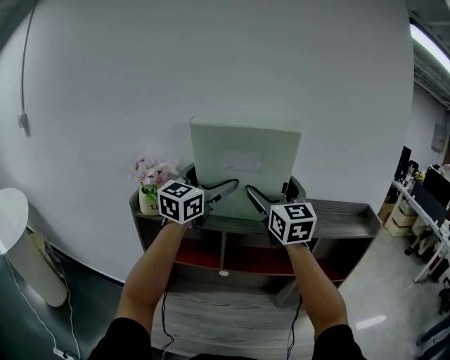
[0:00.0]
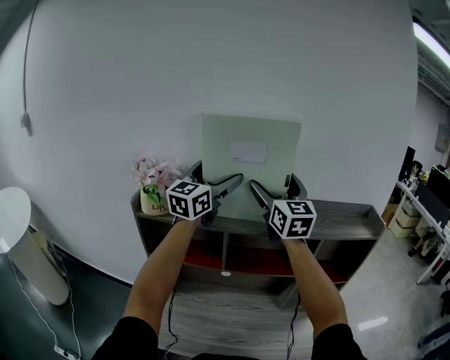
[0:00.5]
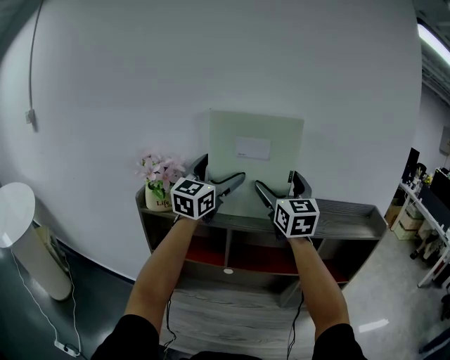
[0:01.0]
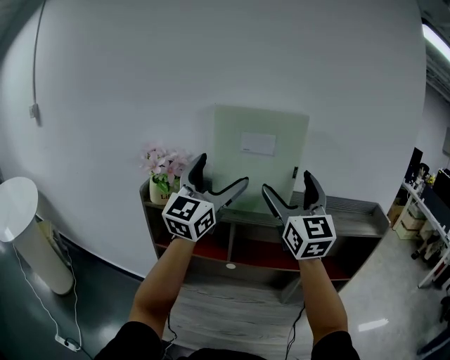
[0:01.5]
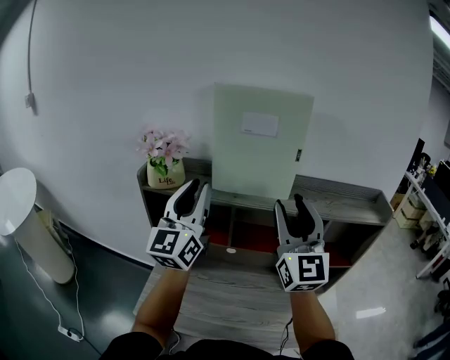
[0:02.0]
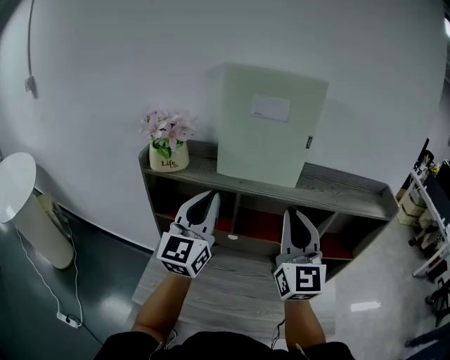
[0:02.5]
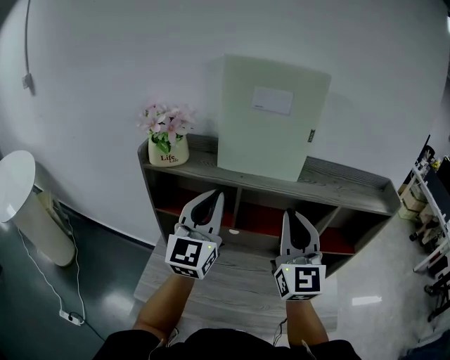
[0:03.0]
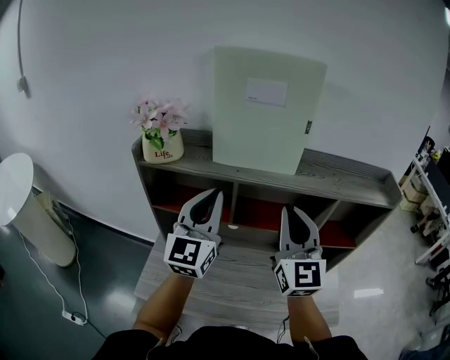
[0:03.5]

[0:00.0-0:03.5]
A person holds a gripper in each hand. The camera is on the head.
0:00.0 to 0:02.0: The left gripper travels backward and to the left by about 15 cm, rotates about 30 degrees, and closes its fingers; the right gripper travels backward by some 15 cm, and closes.
0:02.0 to 0:03.5: Both grippers travel together downward, approximately 10 cm. The right gripper closes its fingers.

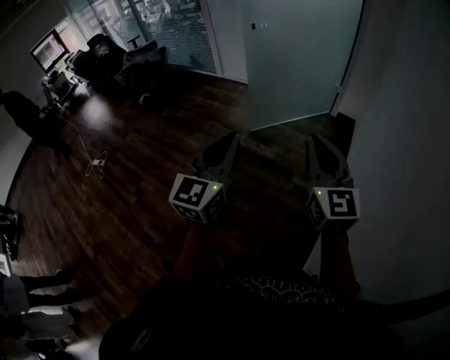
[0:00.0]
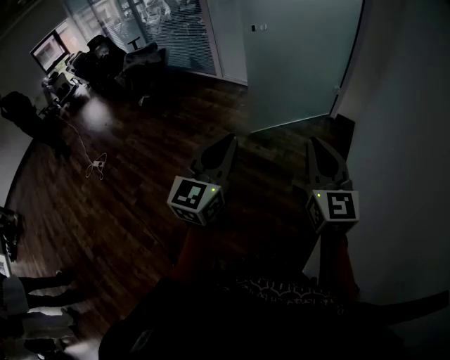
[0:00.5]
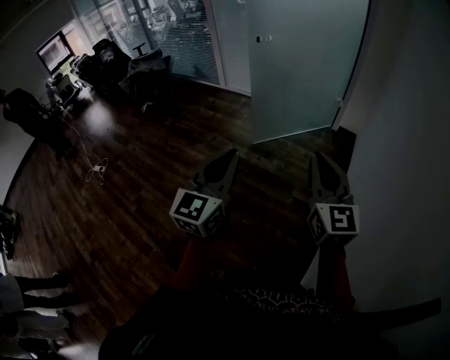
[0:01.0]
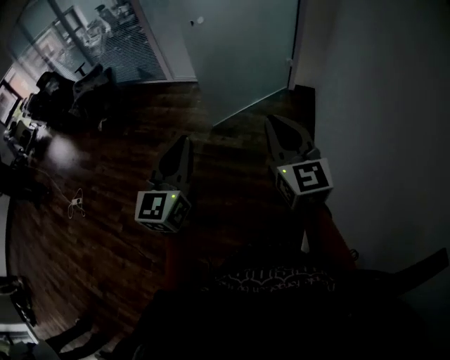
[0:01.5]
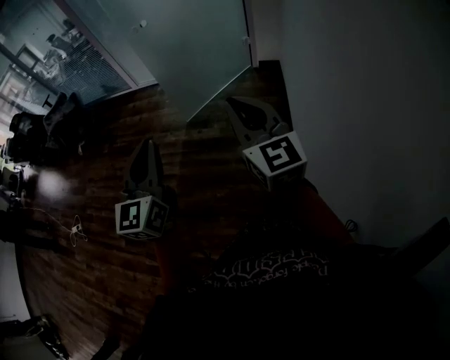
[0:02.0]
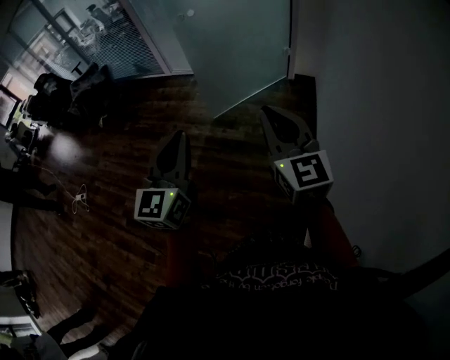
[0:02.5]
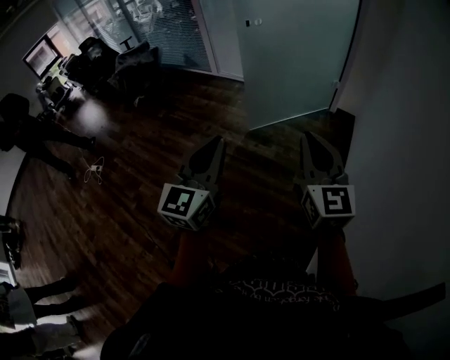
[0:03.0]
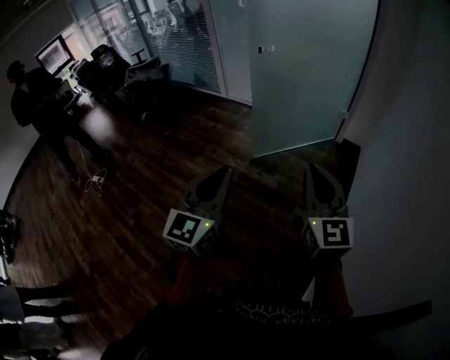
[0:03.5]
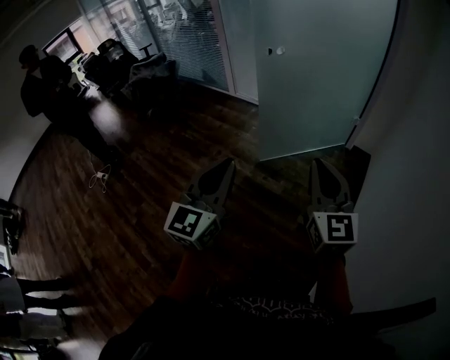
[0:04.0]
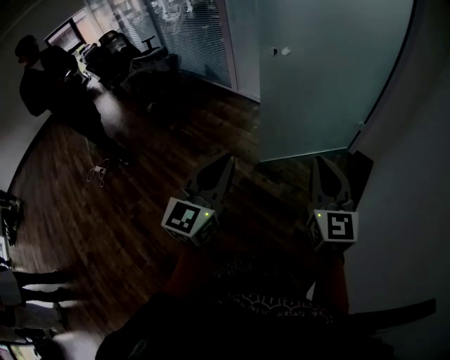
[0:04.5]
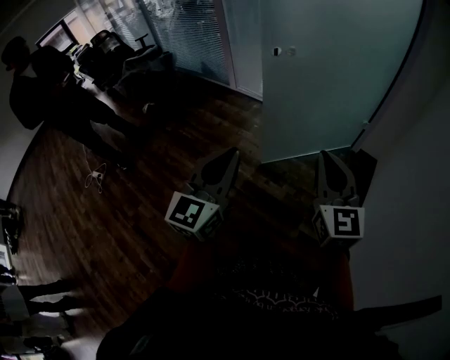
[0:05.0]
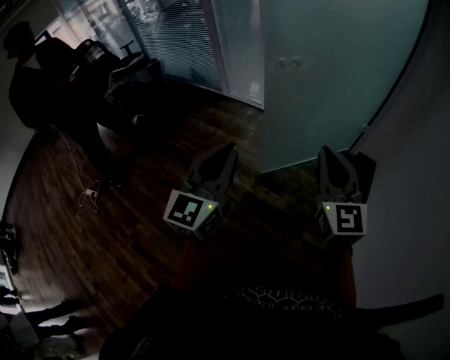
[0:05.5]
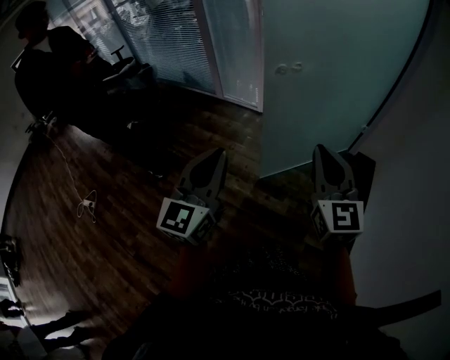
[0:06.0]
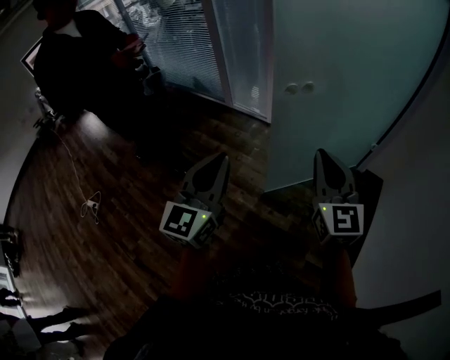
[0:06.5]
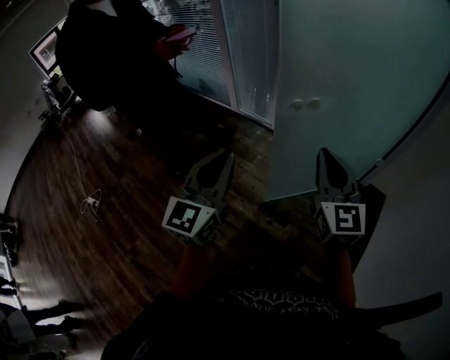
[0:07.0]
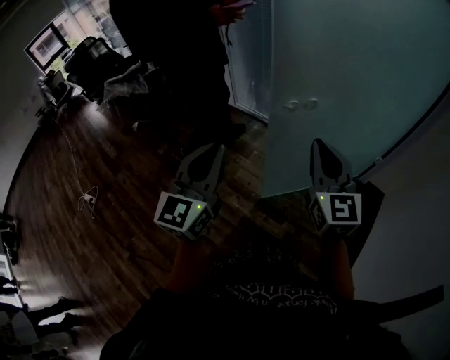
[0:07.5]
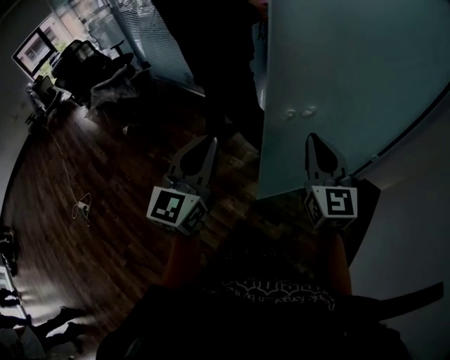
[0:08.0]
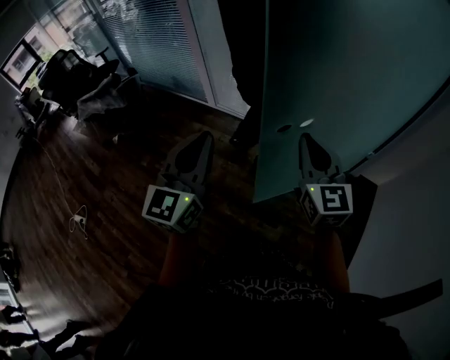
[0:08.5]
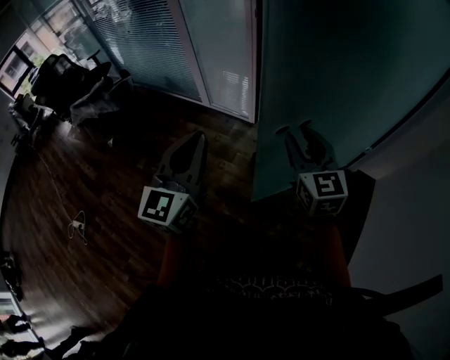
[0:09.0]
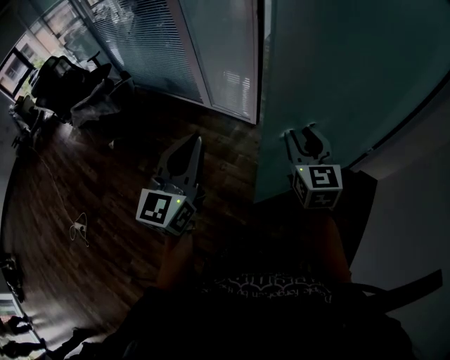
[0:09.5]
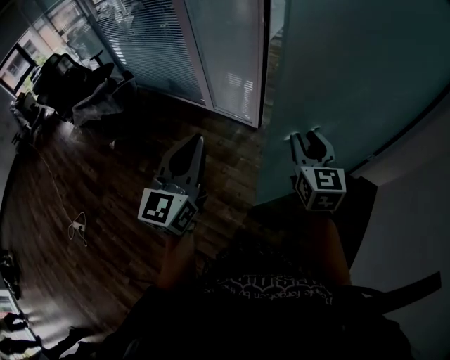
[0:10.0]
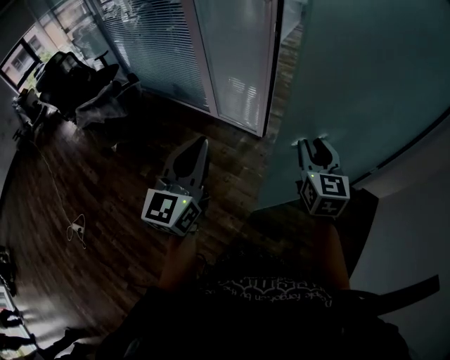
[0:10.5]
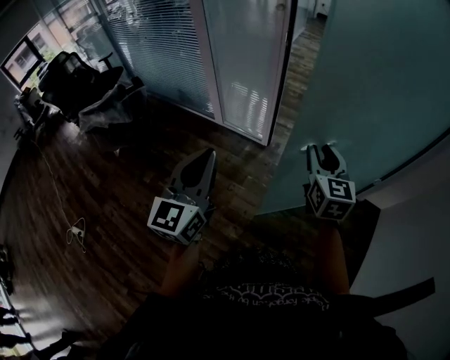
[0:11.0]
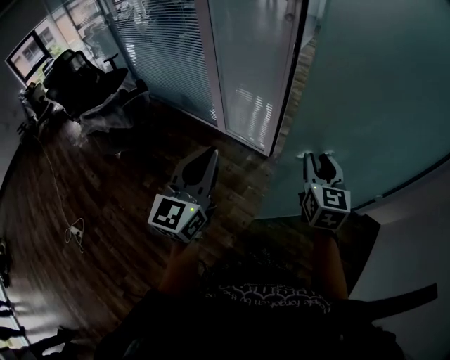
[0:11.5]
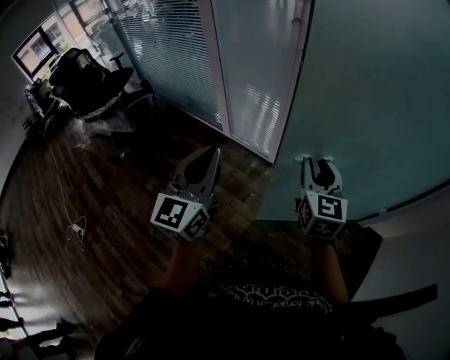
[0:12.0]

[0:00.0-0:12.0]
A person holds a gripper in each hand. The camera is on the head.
0:00.0 to 0:02.0: The grippers move only a little.
0:02.0 to 0:04.0: The grippers both shift forward by approximately 15 cm.
0:04.0 to 0:06.0: The left gripper moves forward and to the left, roughly 30 cm, while the right gripper goes approximately 30 cm forward.
0:06.0 to 0:08.0: Both grippers move forward, approximately 25 cm.
0:08.0 to 0:10.0: The two grippers go approximately 10 cm forward. The right gripper opens its fingers.
0:10.0 to 0:12.0: Both grippers move forward, approximately 15 cm.

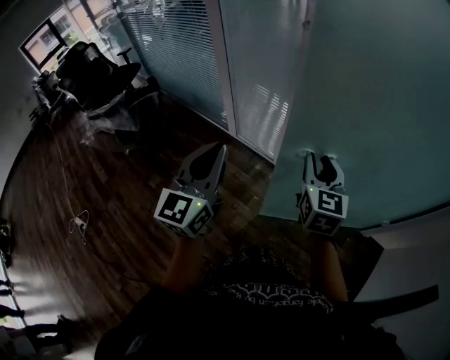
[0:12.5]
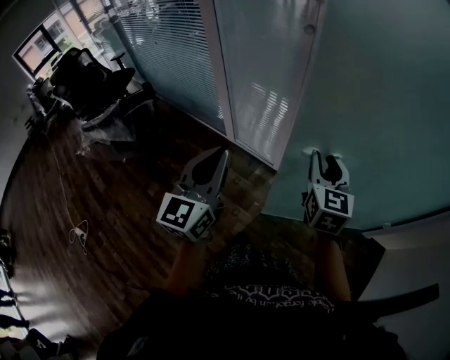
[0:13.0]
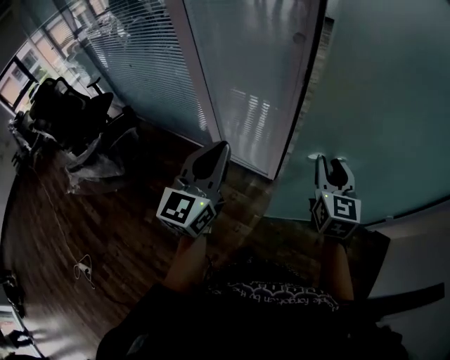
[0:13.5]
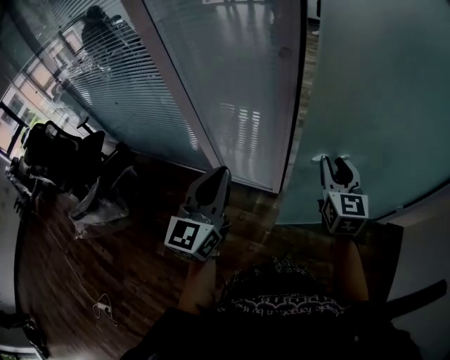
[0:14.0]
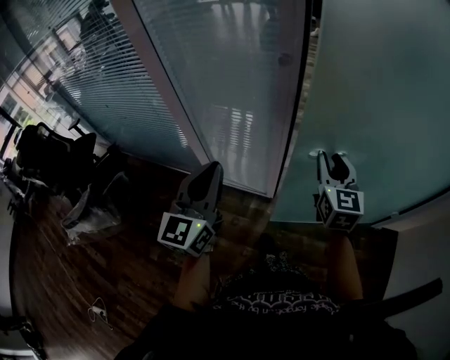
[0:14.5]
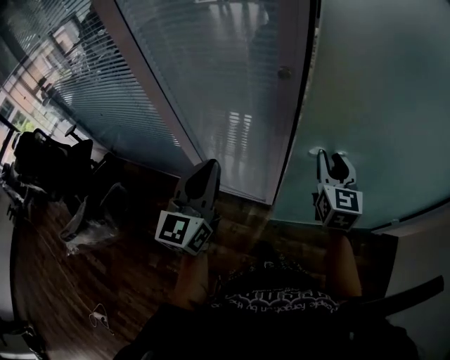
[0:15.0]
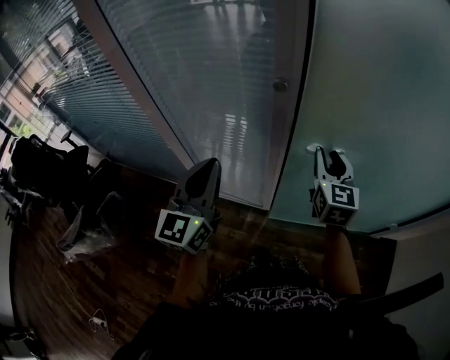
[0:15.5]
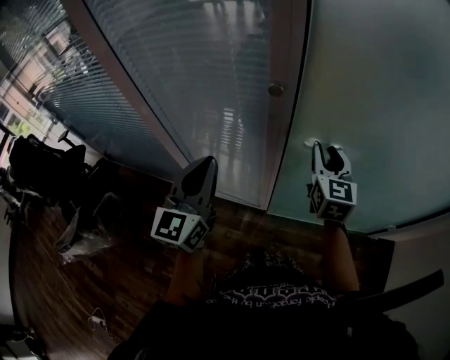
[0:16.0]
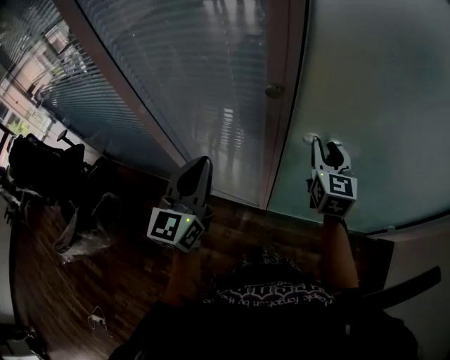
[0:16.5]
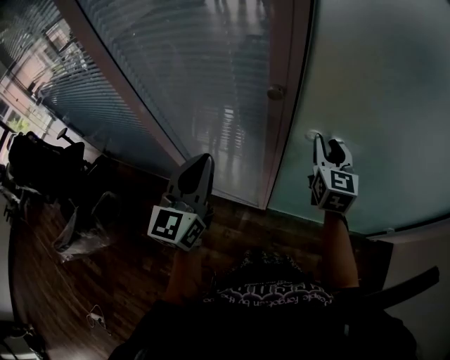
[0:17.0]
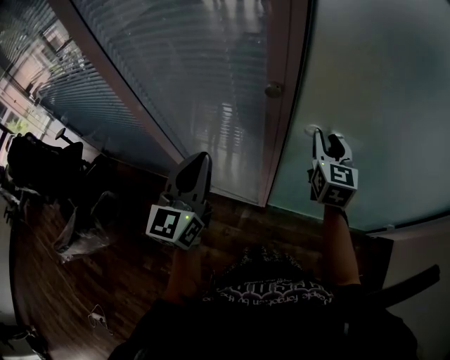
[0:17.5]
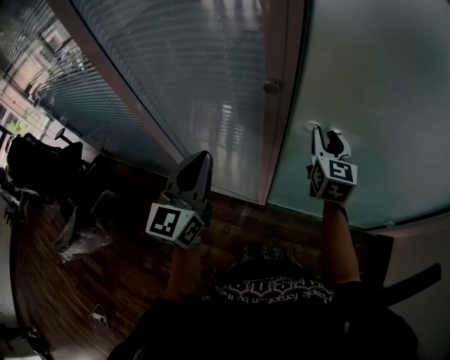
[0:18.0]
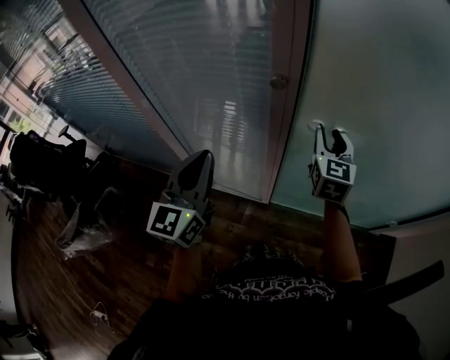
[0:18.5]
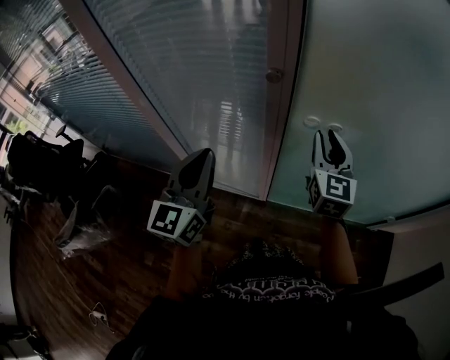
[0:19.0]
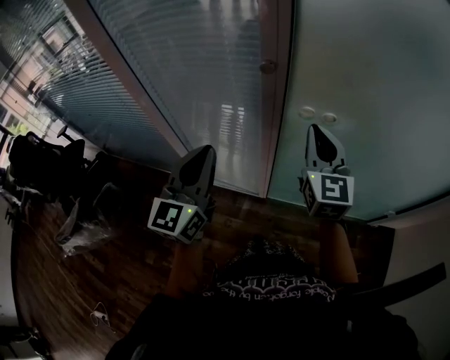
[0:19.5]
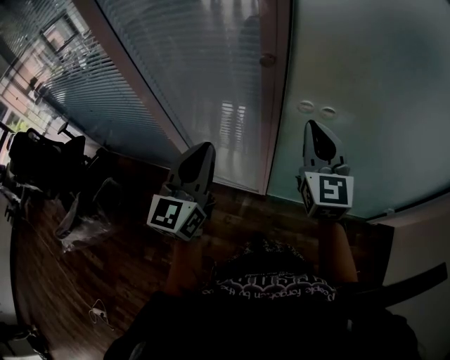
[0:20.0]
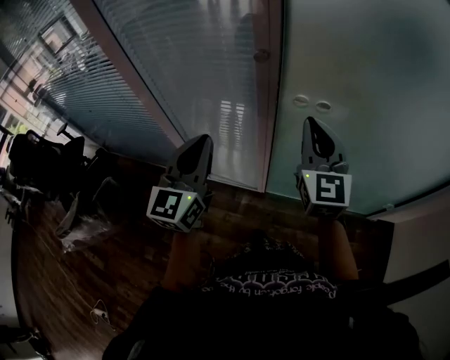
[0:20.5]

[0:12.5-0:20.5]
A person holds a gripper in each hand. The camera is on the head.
0:12.5 to 0:14.5: Both grippers move forward, about 25 cm.
0:14.5 to 0:16.5: The two grippers go some 15 cm forward.
0:16.5 to 0:18.5: There are only small adjustments of the grippers.
0:18.5 to 0:20.5: The left gripper shifts by some 5 cm, while the right gripper moves backward and upward, about 15 cm, and closes.

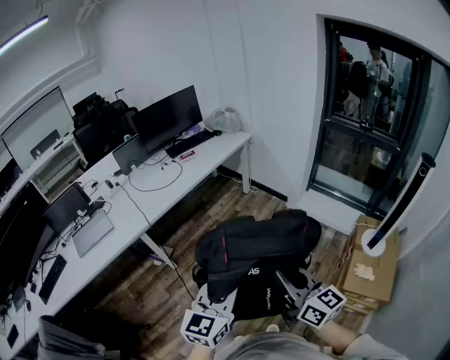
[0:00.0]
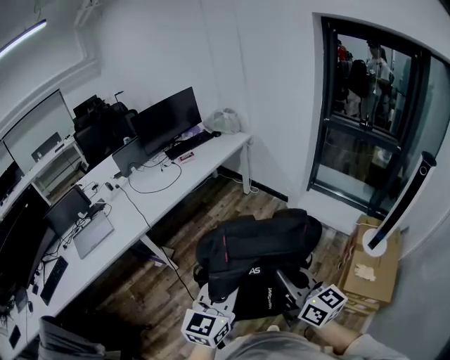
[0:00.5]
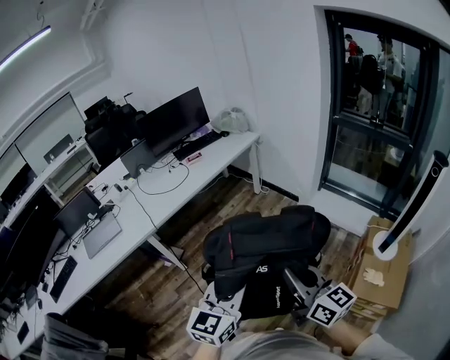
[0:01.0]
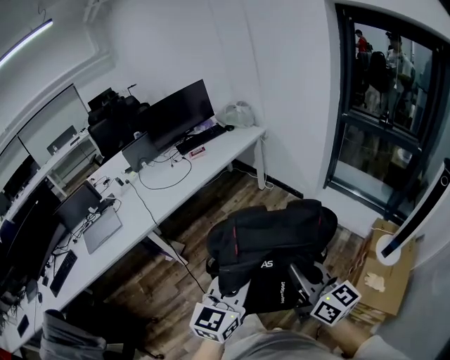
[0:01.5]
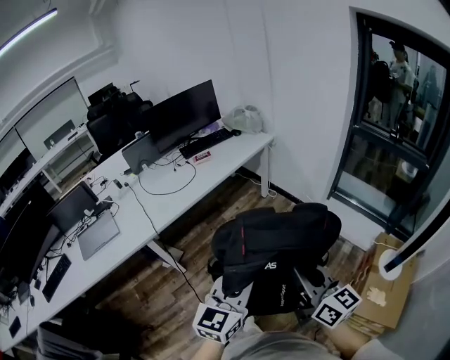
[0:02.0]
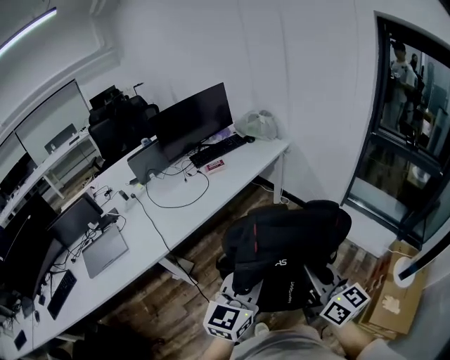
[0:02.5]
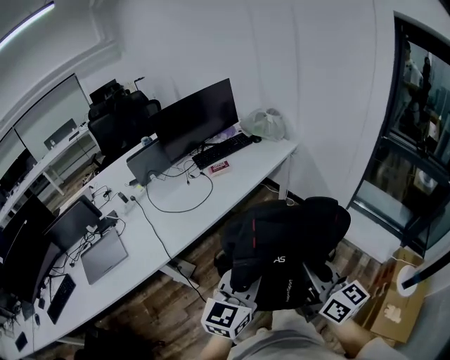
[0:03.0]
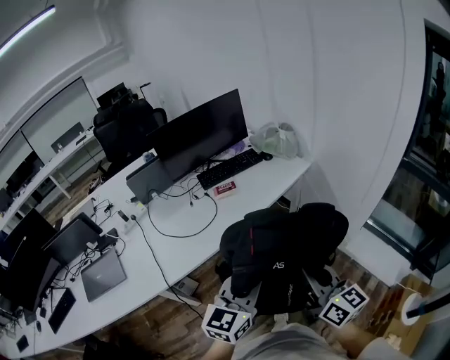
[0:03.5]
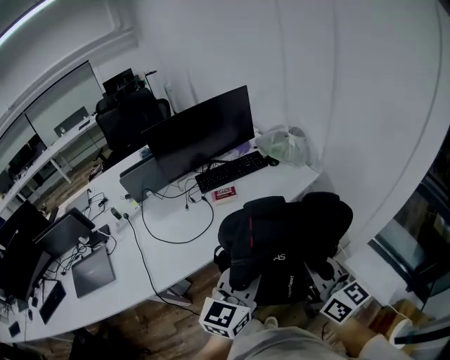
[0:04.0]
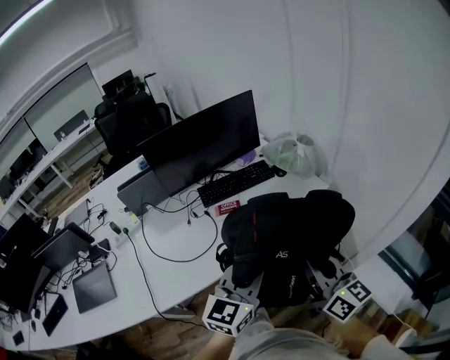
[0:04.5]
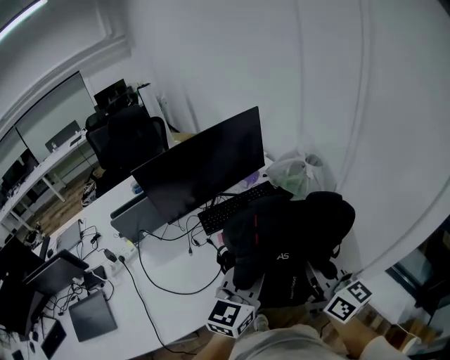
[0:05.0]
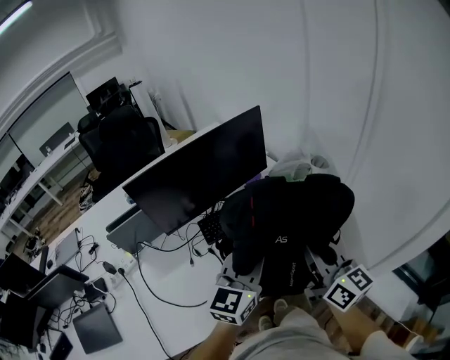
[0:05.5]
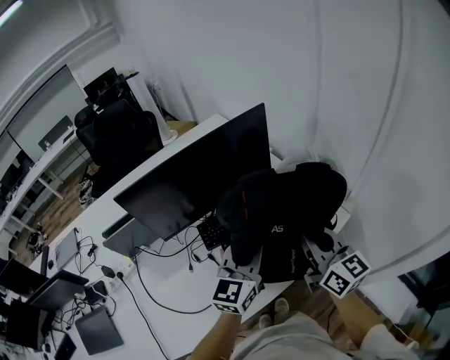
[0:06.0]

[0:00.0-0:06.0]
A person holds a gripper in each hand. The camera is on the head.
0:00.0 to 0:02.0: The two grippers go some 15 cm forward.
0:02.0 to 0:04.0: Both grippers are carried forward, roughly 50 cm.
0:04.0 to 0:06.0: The two grippers travel together, forward, about 40 cm.
